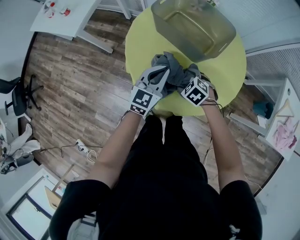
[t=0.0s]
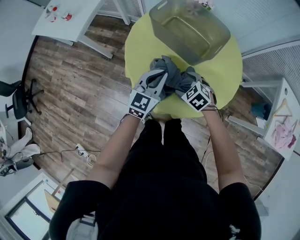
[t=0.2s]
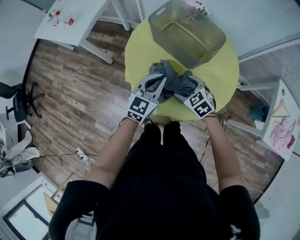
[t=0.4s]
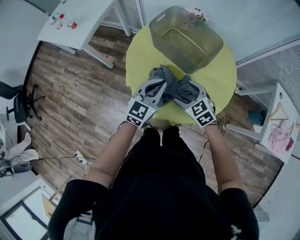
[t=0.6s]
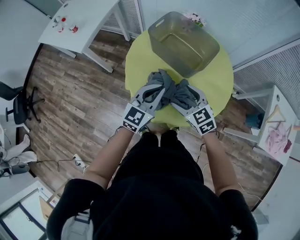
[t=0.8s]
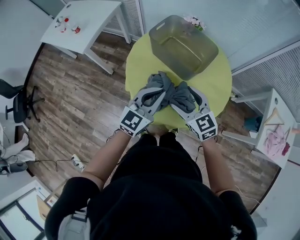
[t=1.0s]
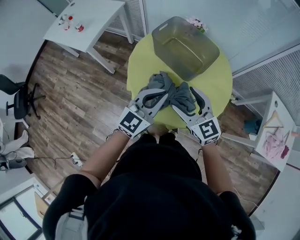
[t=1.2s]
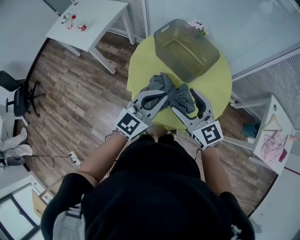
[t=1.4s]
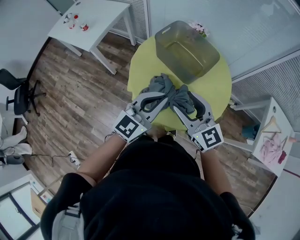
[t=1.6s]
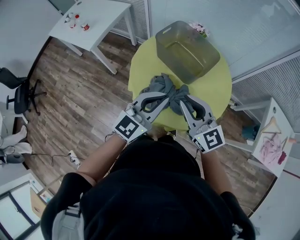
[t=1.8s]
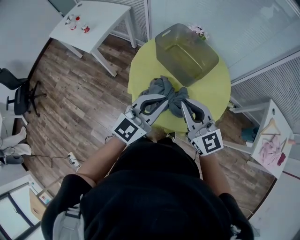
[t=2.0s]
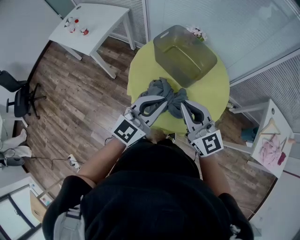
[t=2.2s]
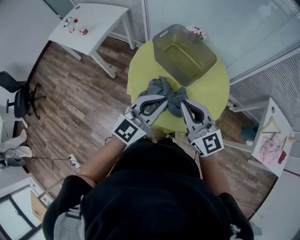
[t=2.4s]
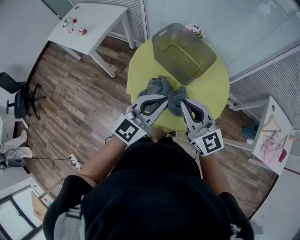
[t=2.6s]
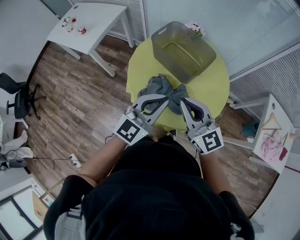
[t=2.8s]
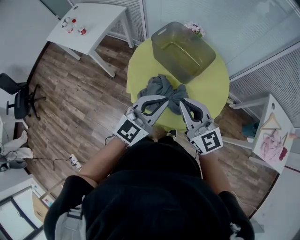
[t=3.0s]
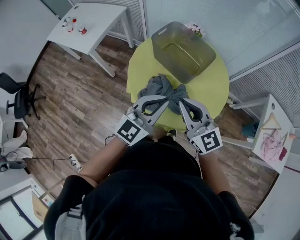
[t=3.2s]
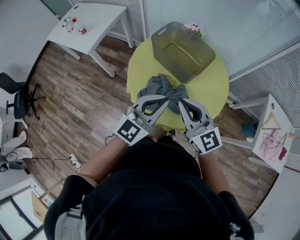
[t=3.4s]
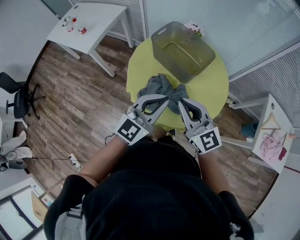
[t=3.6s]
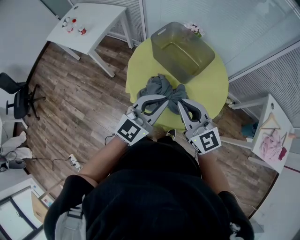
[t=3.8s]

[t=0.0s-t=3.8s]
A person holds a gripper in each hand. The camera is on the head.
t=0.0s to t=1.2s: The left gripper heads upward and backward, covering roughly 15 cm. The right gripper shifts about 25 cm upward, and angles its fingers upward, by approximately 50 degrees.
t=1.2s to t=2.6s: Both grippers travel together upward, approximately 5 cm. The right gripper closes up.
t=2.6s to t=3.8s: The grippers stay close to where they were, moving slightly.

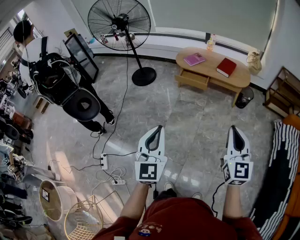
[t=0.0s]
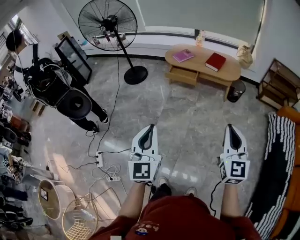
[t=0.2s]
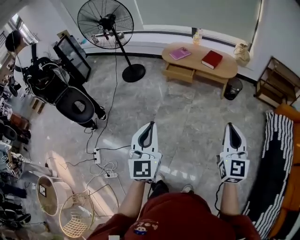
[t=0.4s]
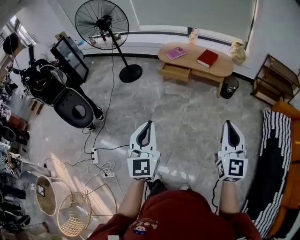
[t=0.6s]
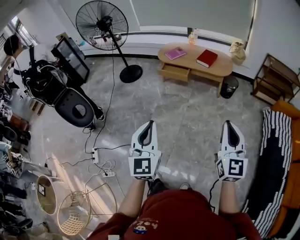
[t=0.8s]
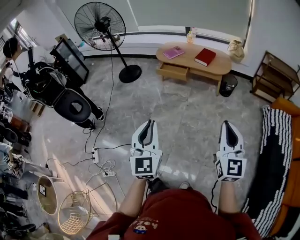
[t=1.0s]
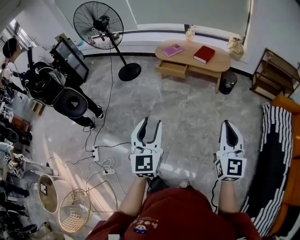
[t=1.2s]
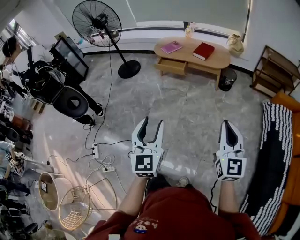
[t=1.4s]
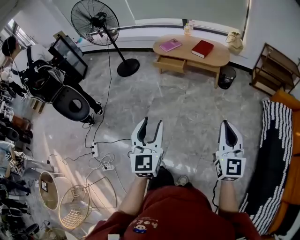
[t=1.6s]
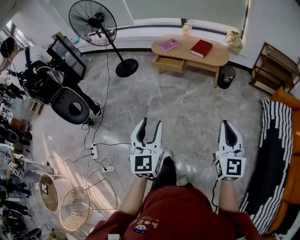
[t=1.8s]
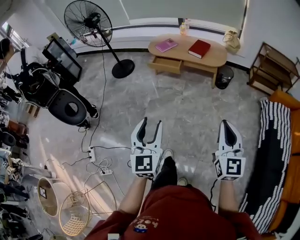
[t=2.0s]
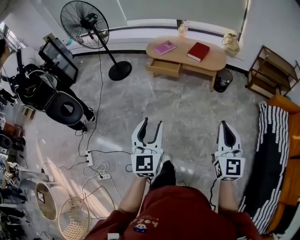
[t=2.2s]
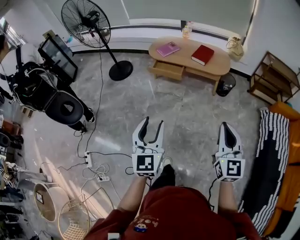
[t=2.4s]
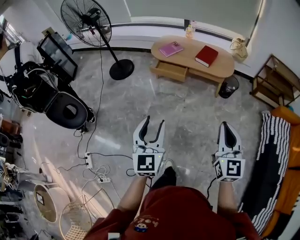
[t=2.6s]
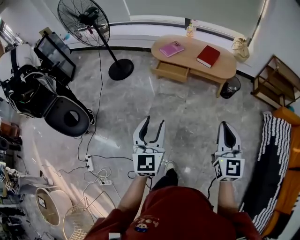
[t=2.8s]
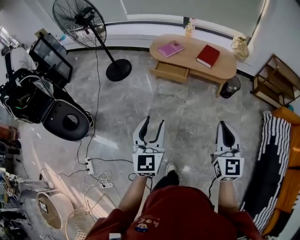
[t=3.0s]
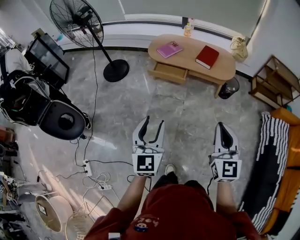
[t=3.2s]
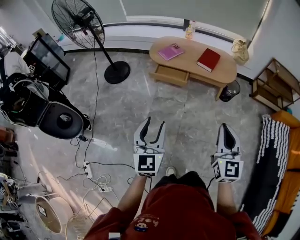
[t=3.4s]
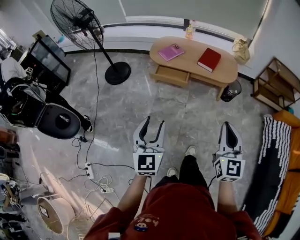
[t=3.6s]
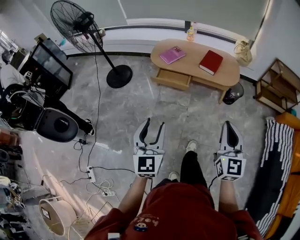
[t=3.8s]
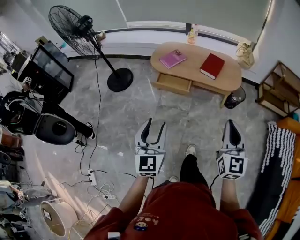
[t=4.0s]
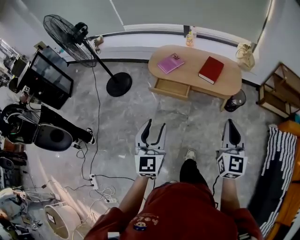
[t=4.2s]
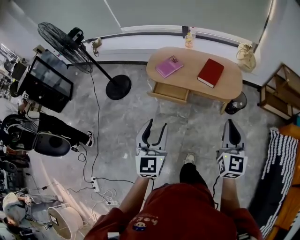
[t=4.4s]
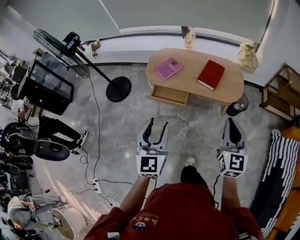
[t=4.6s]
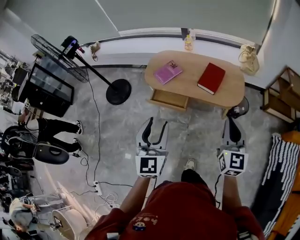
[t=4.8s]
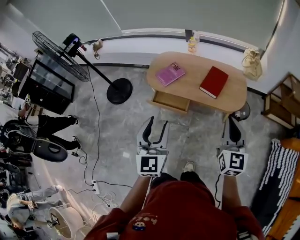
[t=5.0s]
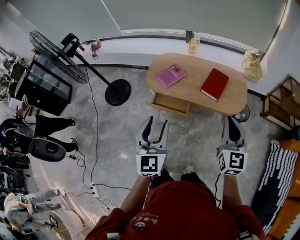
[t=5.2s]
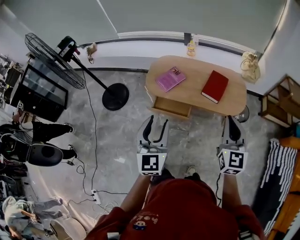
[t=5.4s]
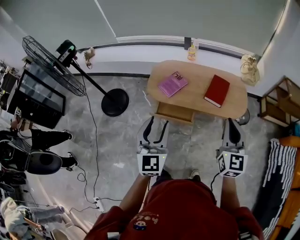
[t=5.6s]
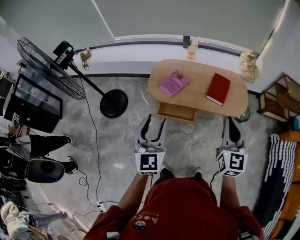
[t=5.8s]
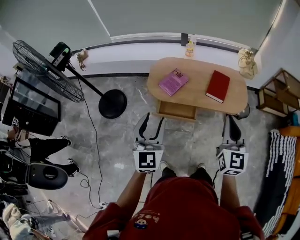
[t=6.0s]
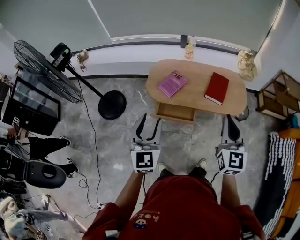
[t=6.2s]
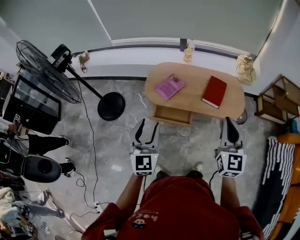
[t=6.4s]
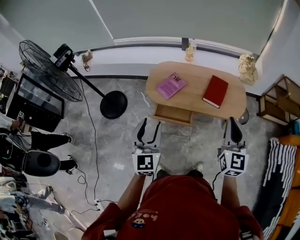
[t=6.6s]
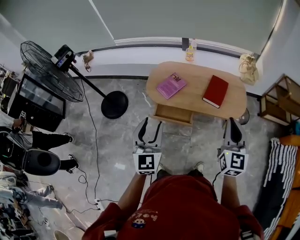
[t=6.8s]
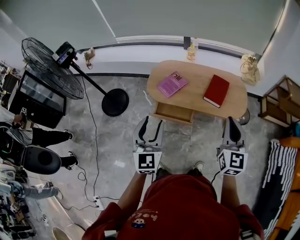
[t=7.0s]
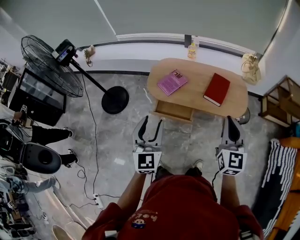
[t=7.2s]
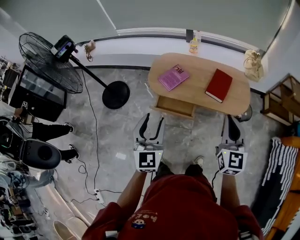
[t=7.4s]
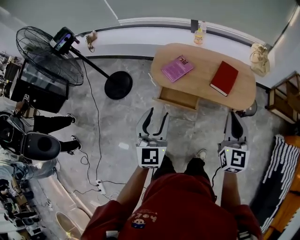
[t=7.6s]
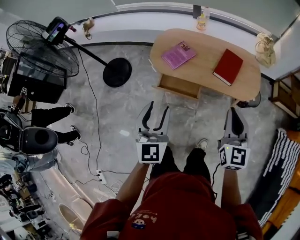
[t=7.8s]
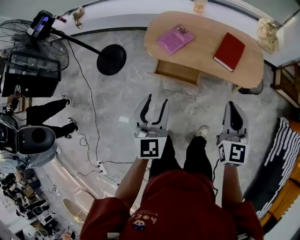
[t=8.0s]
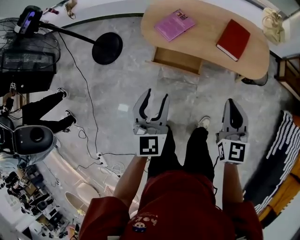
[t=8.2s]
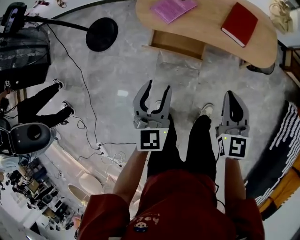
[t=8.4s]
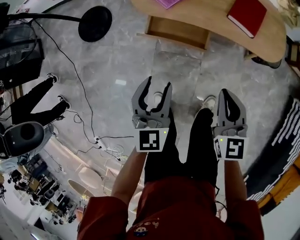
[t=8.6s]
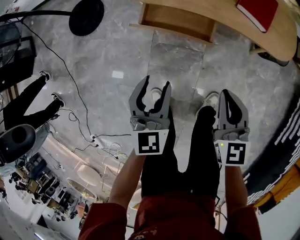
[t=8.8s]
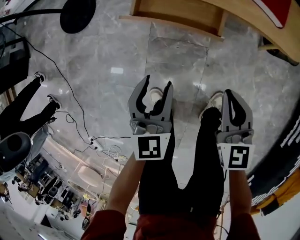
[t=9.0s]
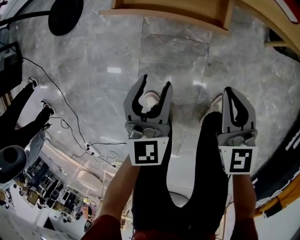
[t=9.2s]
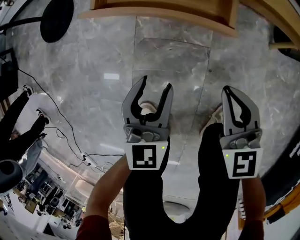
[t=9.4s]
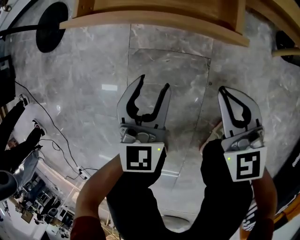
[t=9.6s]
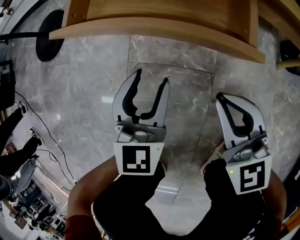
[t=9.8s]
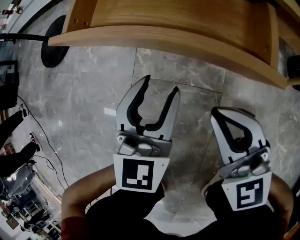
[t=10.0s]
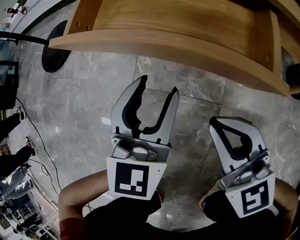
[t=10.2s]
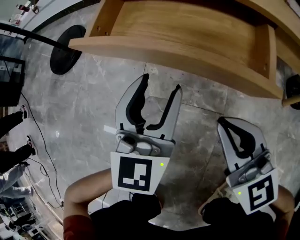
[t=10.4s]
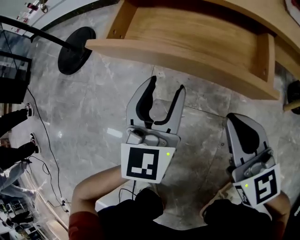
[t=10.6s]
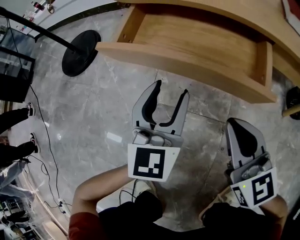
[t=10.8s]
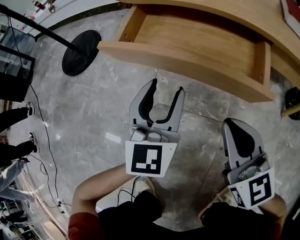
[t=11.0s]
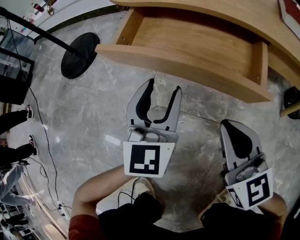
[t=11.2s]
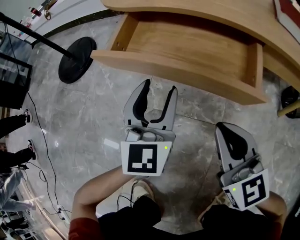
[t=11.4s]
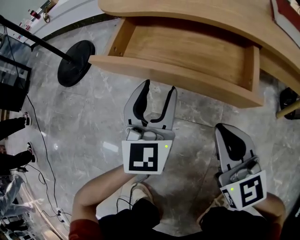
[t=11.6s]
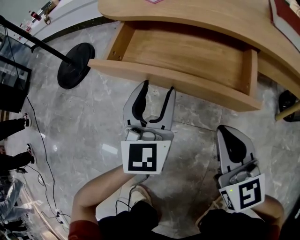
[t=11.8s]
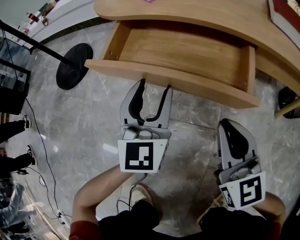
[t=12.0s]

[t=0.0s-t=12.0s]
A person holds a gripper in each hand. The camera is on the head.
t=0.0s to t=1.6s: The left gripper heads to the right, covering some 25 cm, and opens its fingers. The right gripper travels to the right and backward by approximately 25 cm.
t=1.6s to t=3.0s: Both grippers travel together forward and to the left, roughly 30 cm.
t=3.0s to t=4.4s: The grippers both shift forward by about 25 cm.
t=4.4s to t=6.0s: Both grippers move forward and to the left, roughly 30 cm.
t=6.0s to t=7.6s: Both grippers move to the right, some 10 cm.
t=7.6s to t=9.0s: Both grippers move downward, approximately 40 cm. The left gripper swivels approximately 20 degrees. The right gripper swivels about 30 degrees.
t=9.0s to t=10.4s: The right gripper heads downward, covering roughly 25 cm, and rotates approximately 30 degrees, while the left gripper moves downward and forward, some 25 cm, and changes its angle by about 20 degrees.
t=10.4s to t=12.0s: The grippers make only small movements.

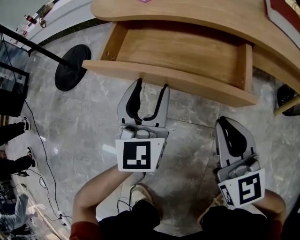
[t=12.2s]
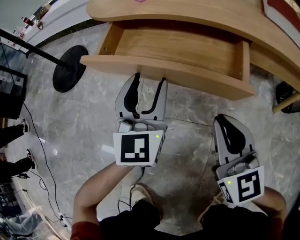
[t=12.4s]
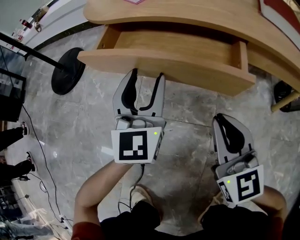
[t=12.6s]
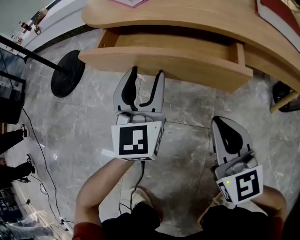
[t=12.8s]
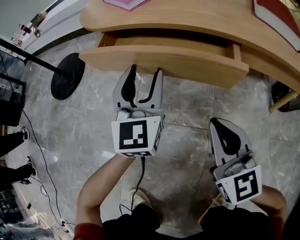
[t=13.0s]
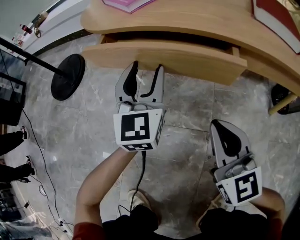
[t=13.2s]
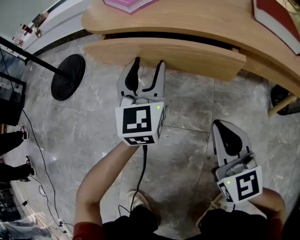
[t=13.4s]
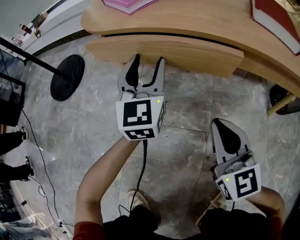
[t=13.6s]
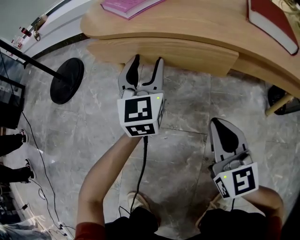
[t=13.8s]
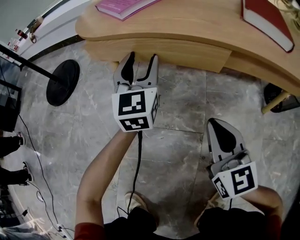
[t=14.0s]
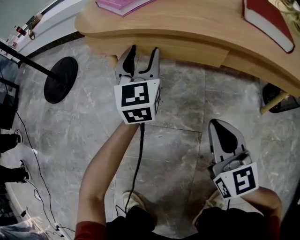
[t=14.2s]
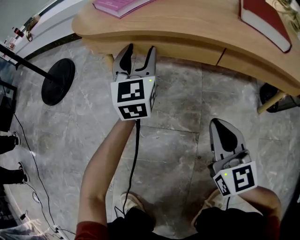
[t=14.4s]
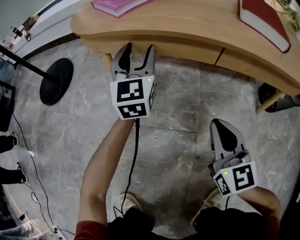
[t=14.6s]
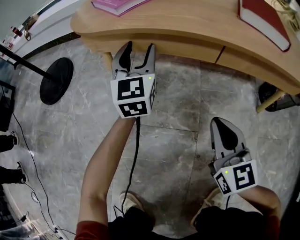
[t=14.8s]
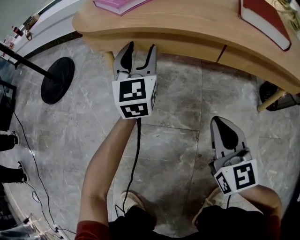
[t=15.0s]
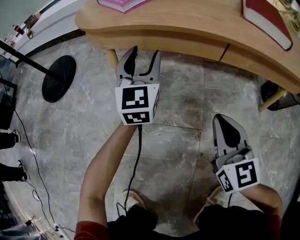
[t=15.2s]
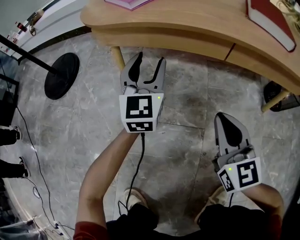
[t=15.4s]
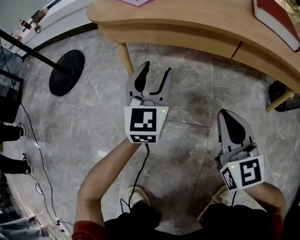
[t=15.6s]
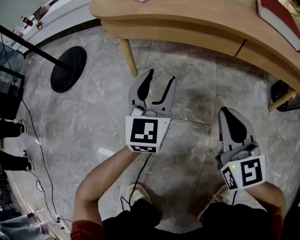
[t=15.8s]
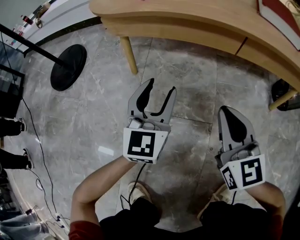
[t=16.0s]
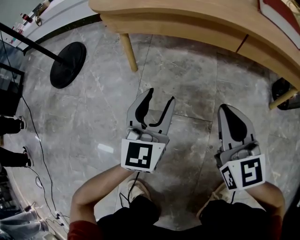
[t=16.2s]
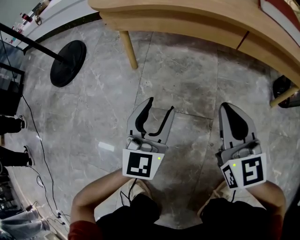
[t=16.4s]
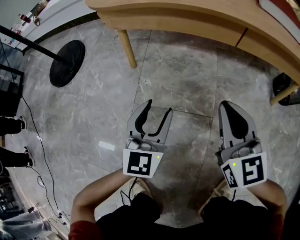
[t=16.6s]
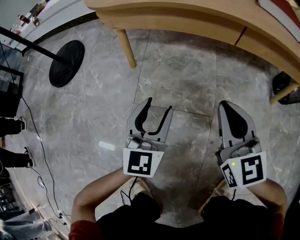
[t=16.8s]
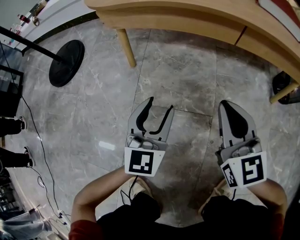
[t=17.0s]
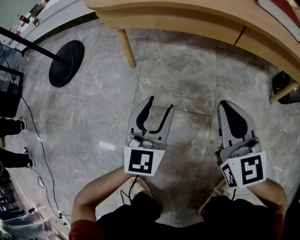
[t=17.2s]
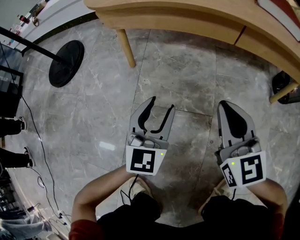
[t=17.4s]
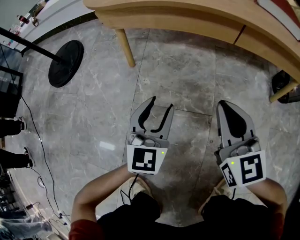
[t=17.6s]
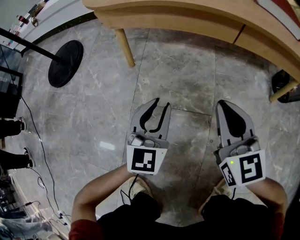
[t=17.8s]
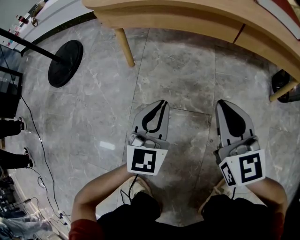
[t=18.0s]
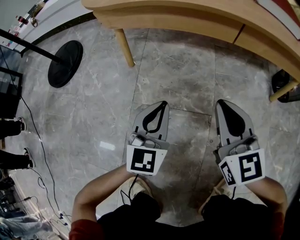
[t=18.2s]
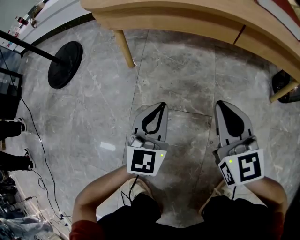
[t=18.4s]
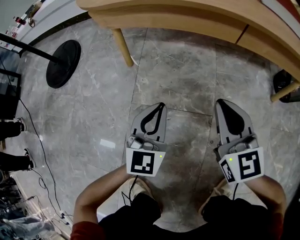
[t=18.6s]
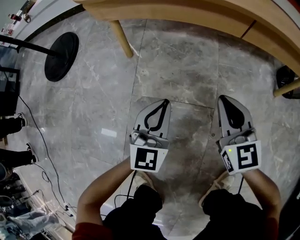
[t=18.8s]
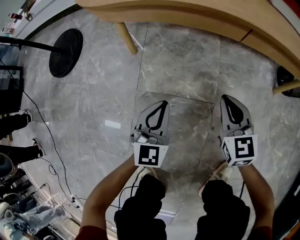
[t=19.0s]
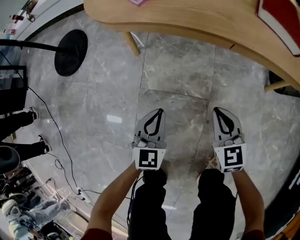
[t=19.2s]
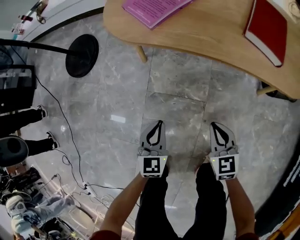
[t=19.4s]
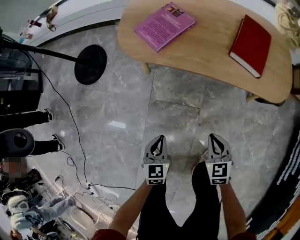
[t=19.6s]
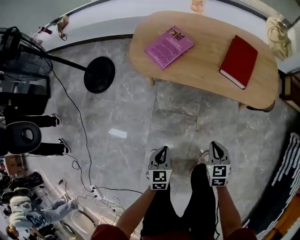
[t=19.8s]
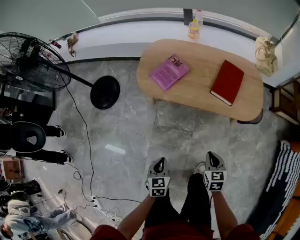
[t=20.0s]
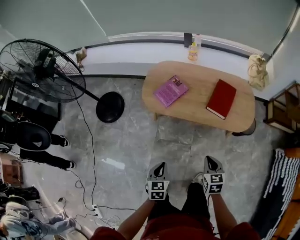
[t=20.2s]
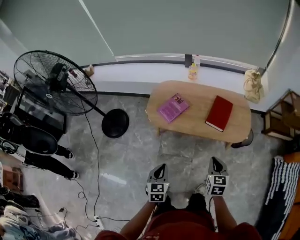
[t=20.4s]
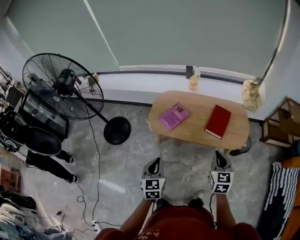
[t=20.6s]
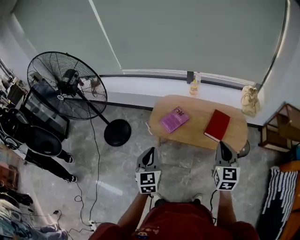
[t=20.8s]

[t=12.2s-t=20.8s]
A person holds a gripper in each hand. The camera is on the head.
t=12.2s to t=13.6s: The left gripper shifts about 10 cm forward.
t=13.6s to t=15.0s: The grippers make only small movements.
t=15.0s to t=16.6s: The left gripper goes about 20 cm backward and downward.
t=16.6s to t=18.0s: The left gripper closes.
t=18.0s to t=19.4s: The right gripper is displaced upward by some 10 cm, and turns by some 20 degrees. The left gripper is displaced upward by about 15 cm, and changes its angle by about 20 degrees.
t=19.4s to t=20.8s: Both grippers travel together upward, approximately 70 cm. The right gripper rotates some 30 degrees.
